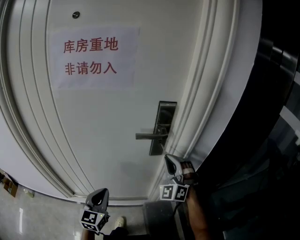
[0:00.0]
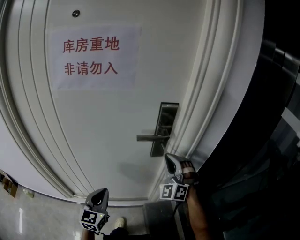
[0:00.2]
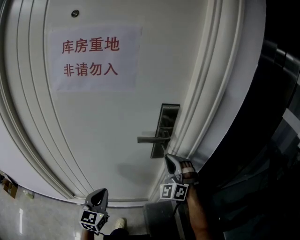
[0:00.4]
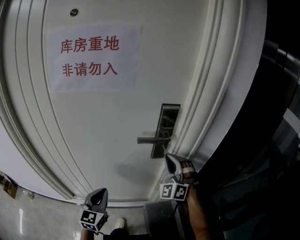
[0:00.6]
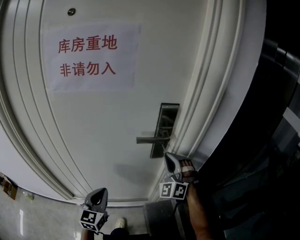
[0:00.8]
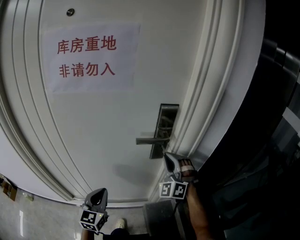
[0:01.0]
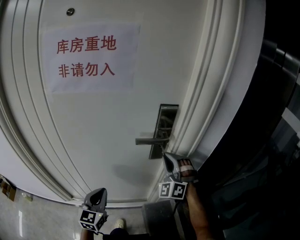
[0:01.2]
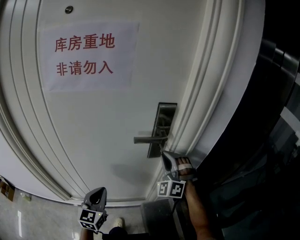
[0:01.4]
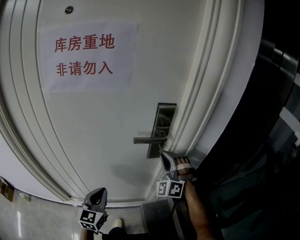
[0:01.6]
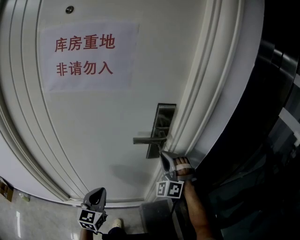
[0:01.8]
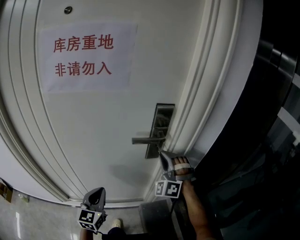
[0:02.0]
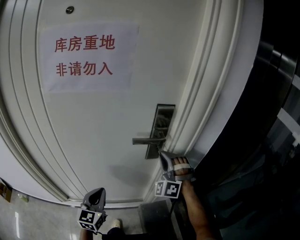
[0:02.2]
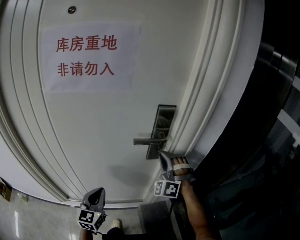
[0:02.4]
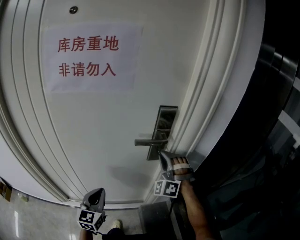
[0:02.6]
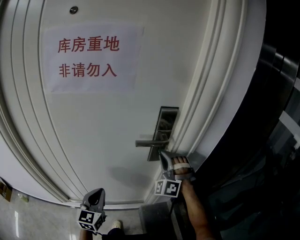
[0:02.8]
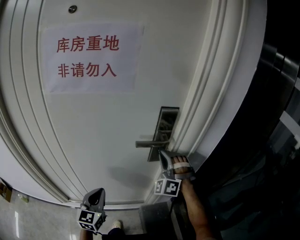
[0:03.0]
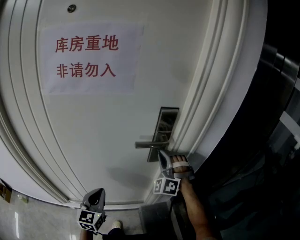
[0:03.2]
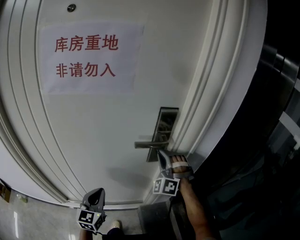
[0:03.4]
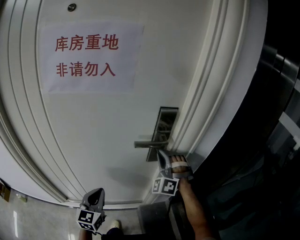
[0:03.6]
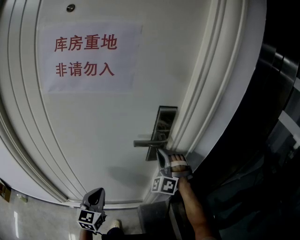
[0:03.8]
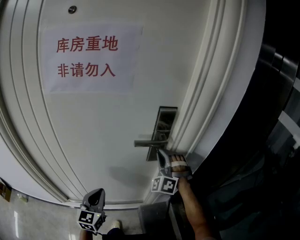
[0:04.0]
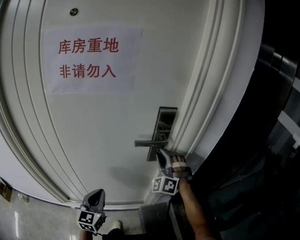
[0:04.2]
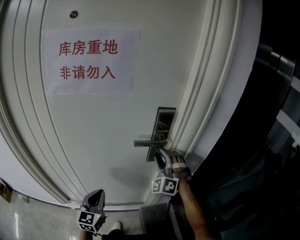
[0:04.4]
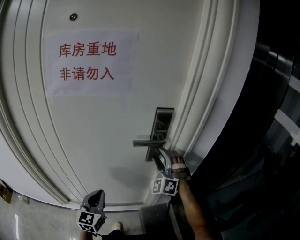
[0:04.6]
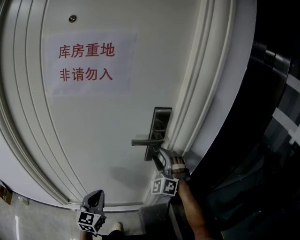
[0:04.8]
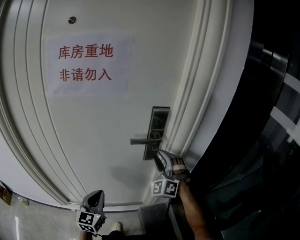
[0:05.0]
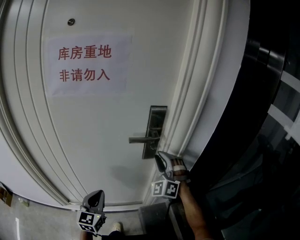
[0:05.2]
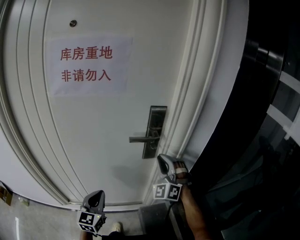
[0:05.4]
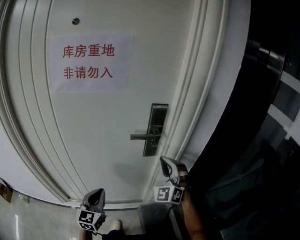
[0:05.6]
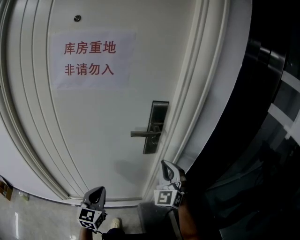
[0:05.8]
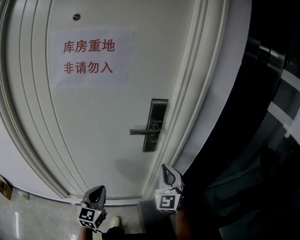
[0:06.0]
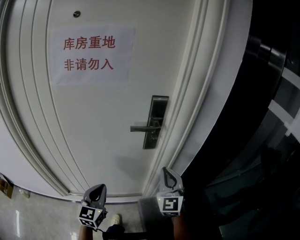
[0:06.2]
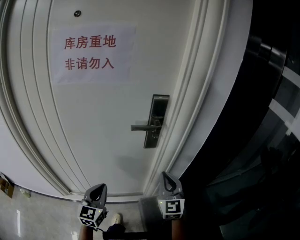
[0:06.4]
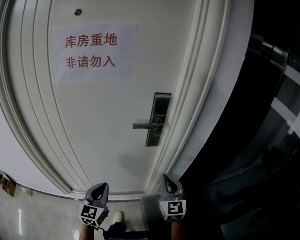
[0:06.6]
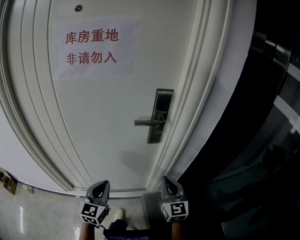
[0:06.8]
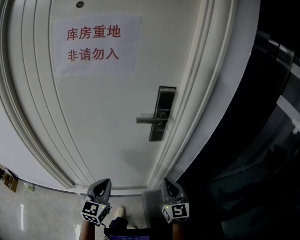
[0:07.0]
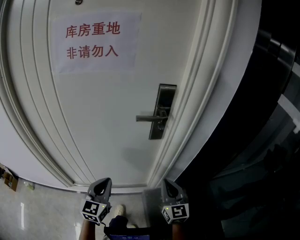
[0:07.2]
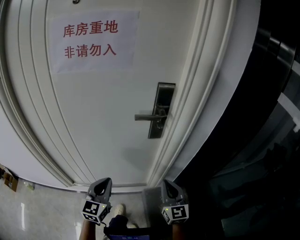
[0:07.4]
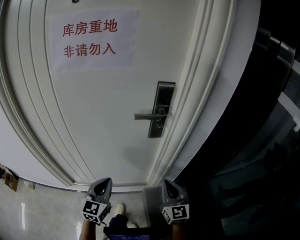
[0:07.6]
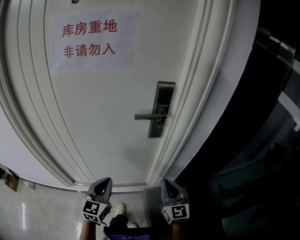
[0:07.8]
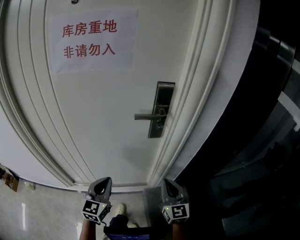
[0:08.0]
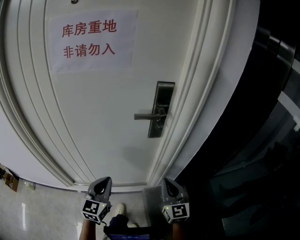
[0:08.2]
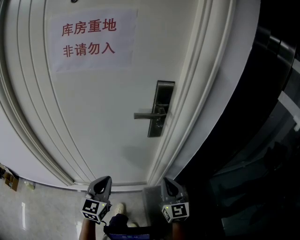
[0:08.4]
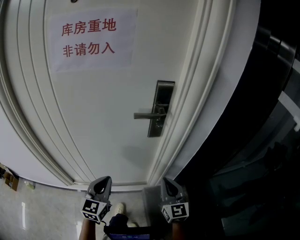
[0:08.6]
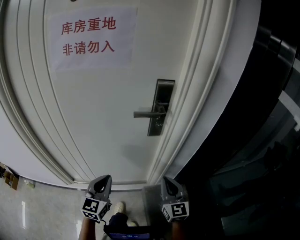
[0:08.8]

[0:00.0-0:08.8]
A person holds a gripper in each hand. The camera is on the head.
0:00.0 to 0:01.4: The grippers make only small movements.
0:01.4 to 0:03.0: There are only small adjustments of the grippers.
0:03.0 to 0:04.4: The right gripper opens.
0:04.4 to 0:05.8: The right gripper is displaced backward by approximately 10 cm, rotates about 30 degrees, and closes its fingers.
0:05.8 to 0:07.4: The right gripper travels downward and backward by approximately 15 cm, and rotates around the line of its fingers by some 40 degrees, clockwise from behind.
0:07.4 to 0:08.8: The two grippers keep their place.

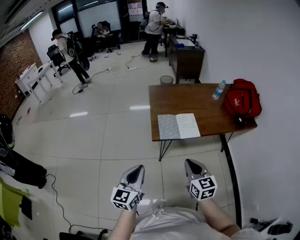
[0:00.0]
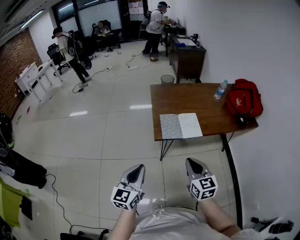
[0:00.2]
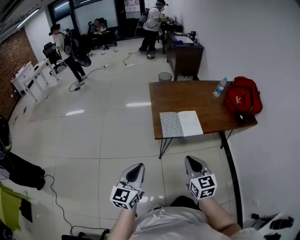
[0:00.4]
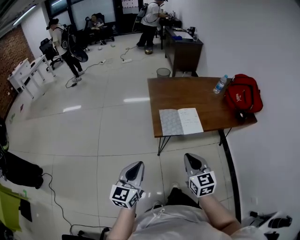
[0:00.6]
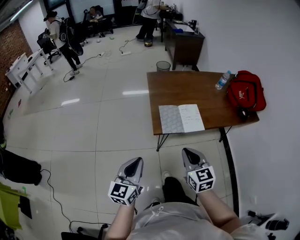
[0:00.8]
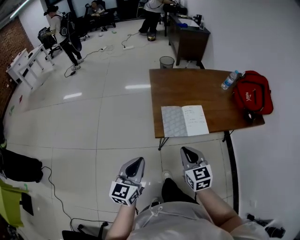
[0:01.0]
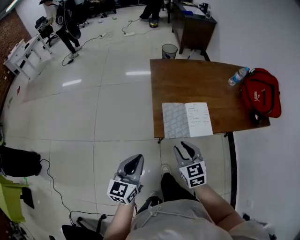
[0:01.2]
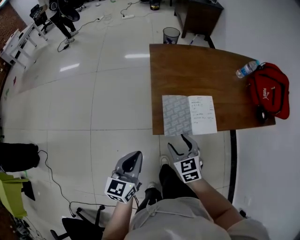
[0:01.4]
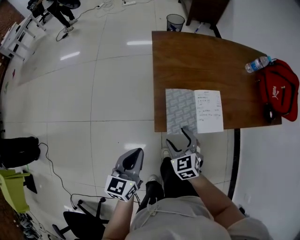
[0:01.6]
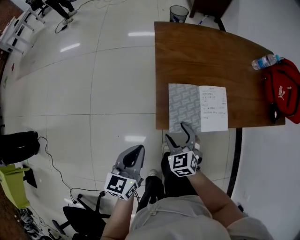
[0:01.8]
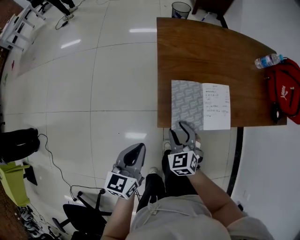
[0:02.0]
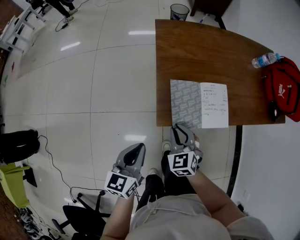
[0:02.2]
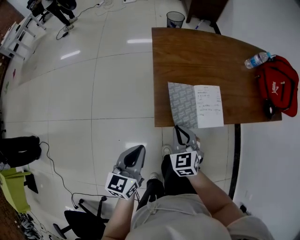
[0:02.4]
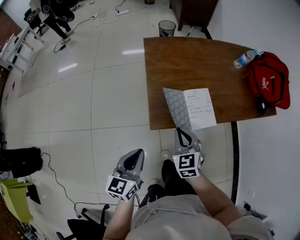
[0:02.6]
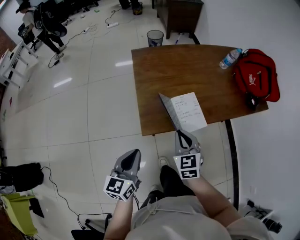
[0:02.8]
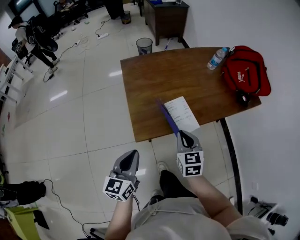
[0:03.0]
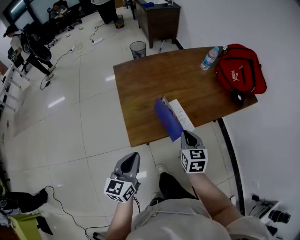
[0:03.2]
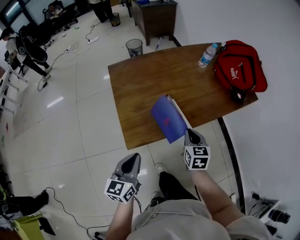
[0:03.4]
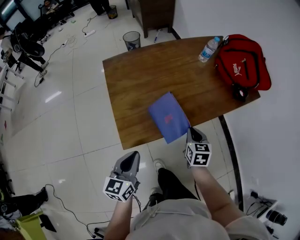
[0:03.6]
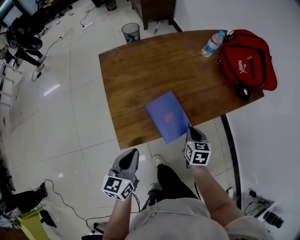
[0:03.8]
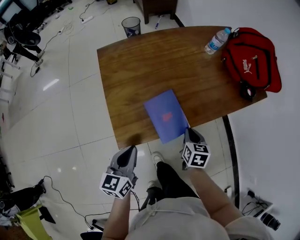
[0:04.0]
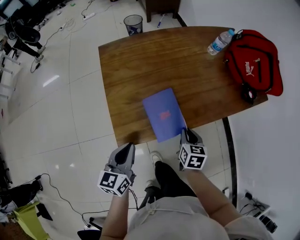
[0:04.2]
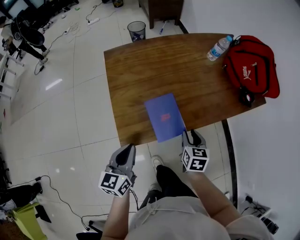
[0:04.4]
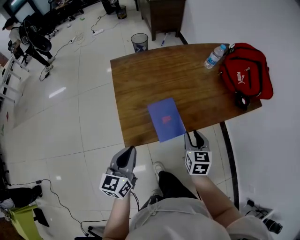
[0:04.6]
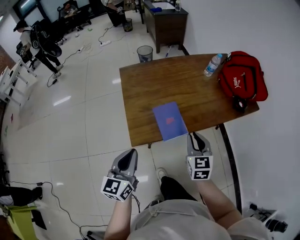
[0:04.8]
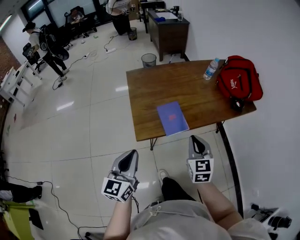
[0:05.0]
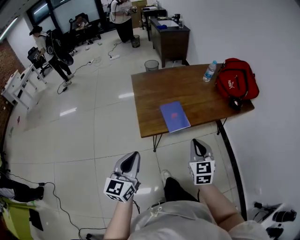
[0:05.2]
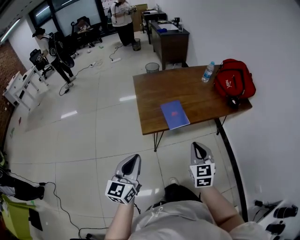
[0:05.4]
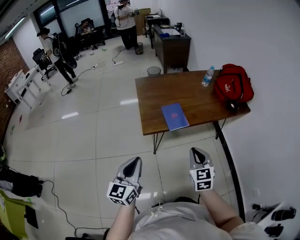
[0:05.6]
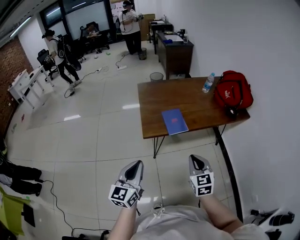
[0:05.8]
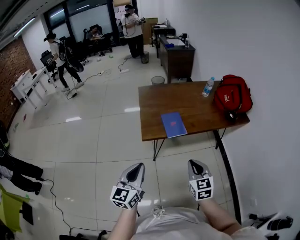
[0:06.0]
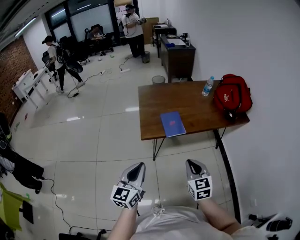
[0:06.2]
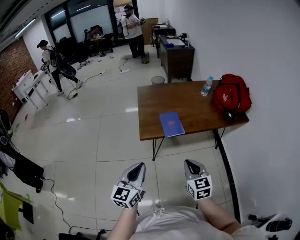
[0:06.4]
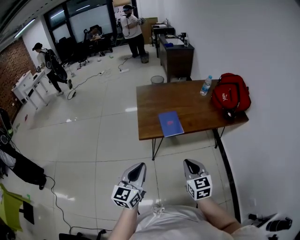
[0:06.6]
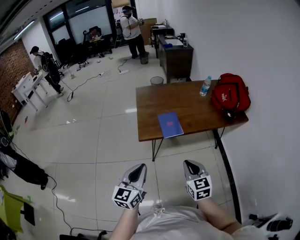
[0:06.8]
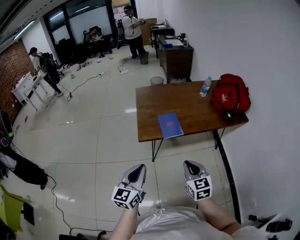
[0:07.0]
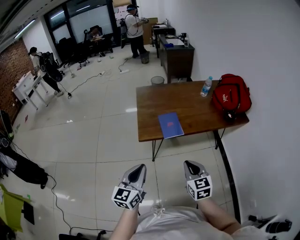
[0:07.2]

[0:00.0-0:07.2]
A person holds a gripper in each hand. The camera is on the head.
0:00.0 to 0:01.4: The left gripper goes about 20 cm forward and downward. The right gripper heads forward, downward and to the left, covering roughly 25 cm, rotates approximately 30 degrees, and opens.
0:01.4 to 0:02.8: The right gripper goes some 10 cm upward and to the right, and closes.
0:02.8 to 0:04.4: The right gripper heads to the right, downward and forward, covering some 20 cm, changes its angle by approximately 30 degrees, and opens. Meanwhile the left gripper heads forward and to the right, covering approximately 15 cm.
0:04.4 to 0:05.8: Both grippers travel together backward and upward, approximately 30 cm. The right gripper rotates about 30 degrees, and closes its fingers.
0:05.8 to 0:07.2: The left gripper moves to the right, some 5 cm.

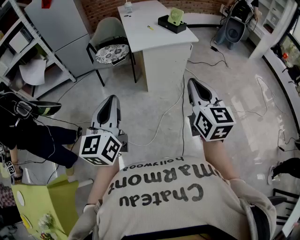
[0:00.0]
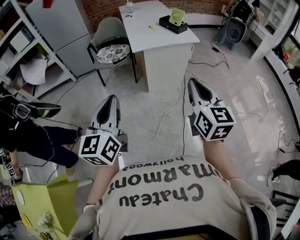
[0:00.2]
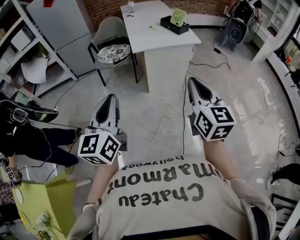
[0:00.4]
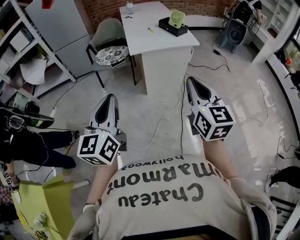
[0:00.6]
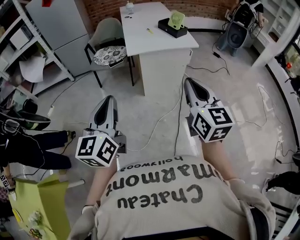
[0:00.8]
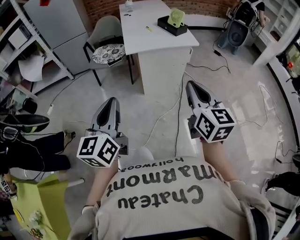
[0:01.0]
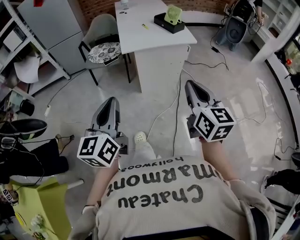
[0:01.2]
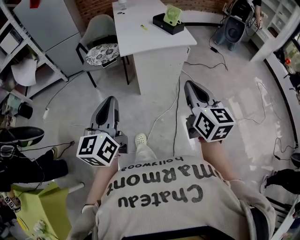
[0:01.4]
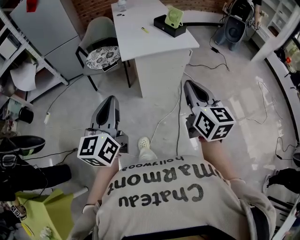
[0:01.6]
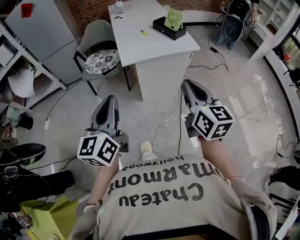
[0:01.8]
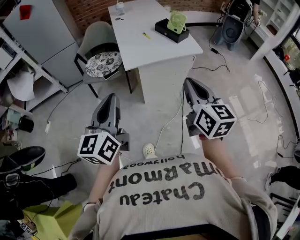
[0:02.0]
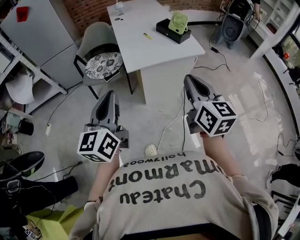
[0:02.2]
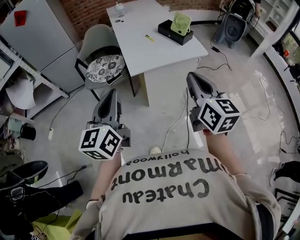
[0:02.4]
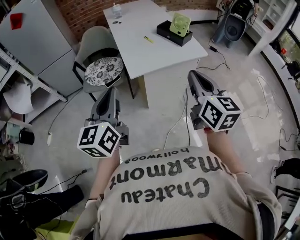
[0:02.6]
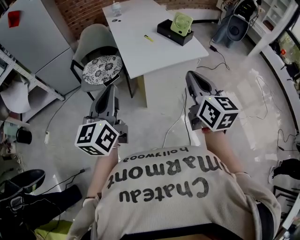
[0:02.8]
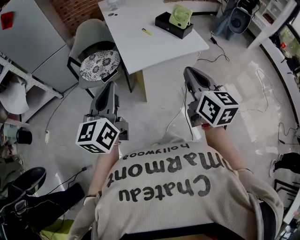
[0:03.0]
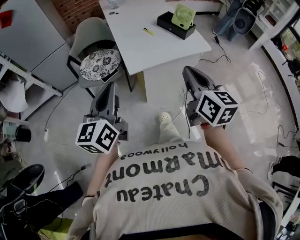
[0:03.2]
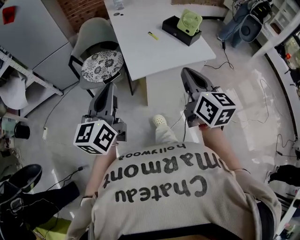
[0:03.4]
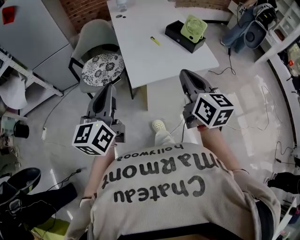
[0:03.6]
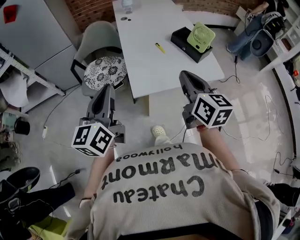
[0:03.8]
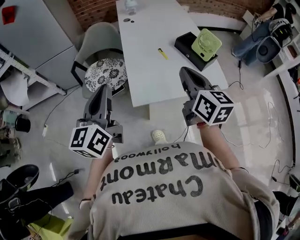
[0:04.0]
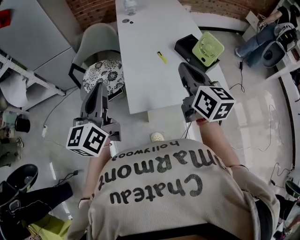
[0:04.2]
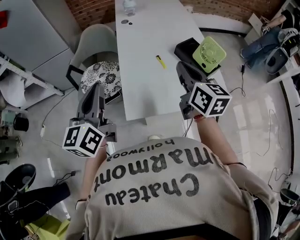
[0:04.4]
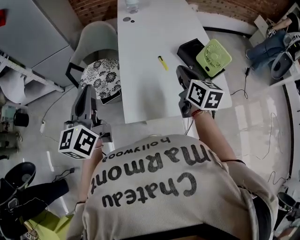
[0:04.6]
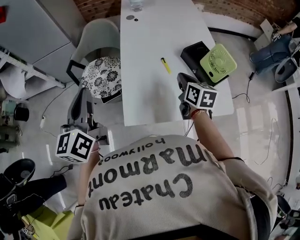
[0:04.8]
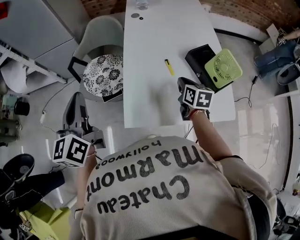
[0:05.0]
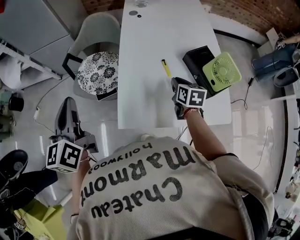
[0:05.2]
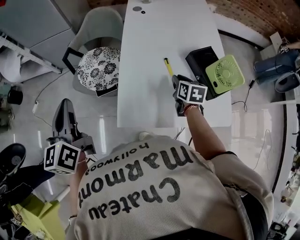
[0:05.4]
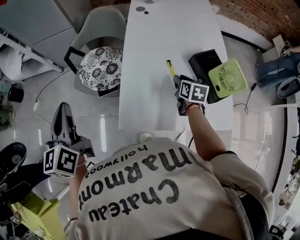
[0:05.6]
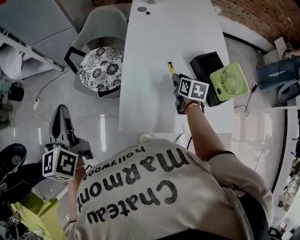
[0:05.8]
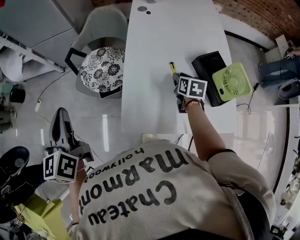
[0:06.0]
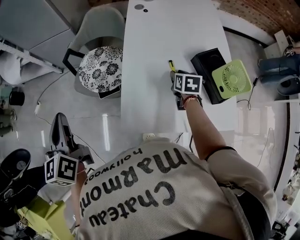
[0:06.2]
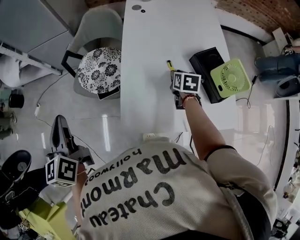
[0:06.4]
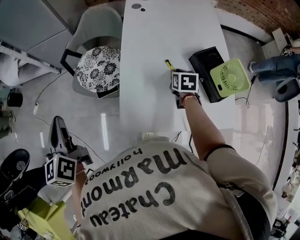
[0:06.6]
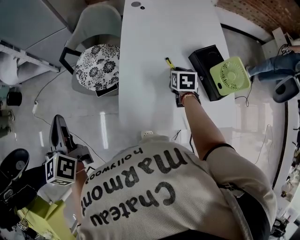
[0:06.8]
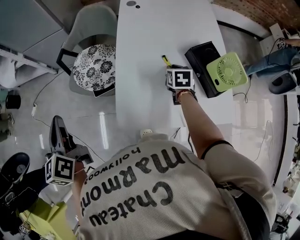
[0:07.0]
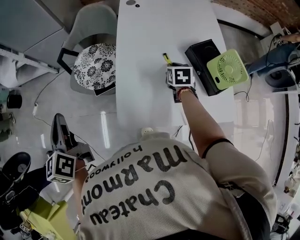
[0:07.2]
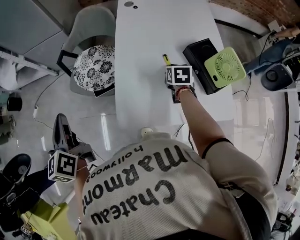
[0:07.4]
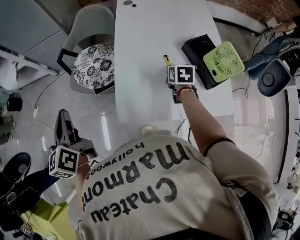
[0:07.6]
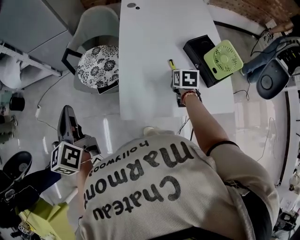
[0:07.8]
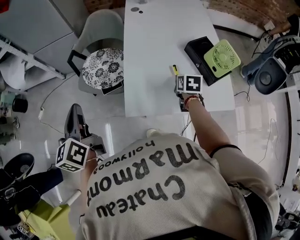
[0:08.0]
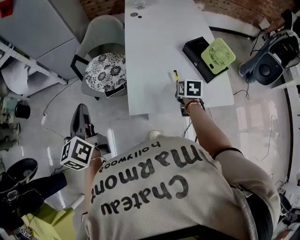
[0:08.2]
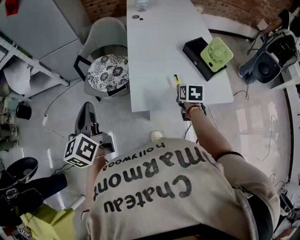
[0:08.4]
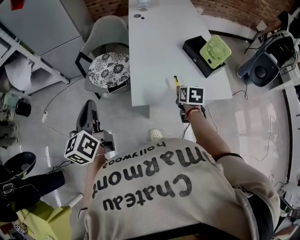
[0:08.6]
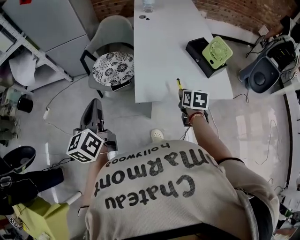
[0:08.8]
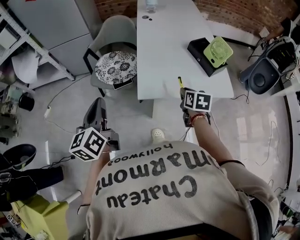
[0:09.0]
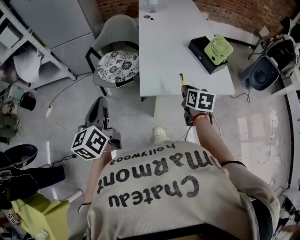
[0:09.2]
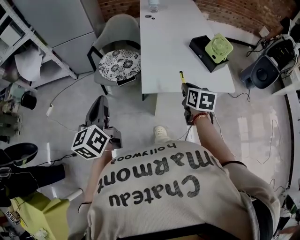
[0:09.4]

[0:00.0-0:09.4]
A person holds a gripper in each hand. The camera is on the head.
0:00.0 to 0:01.6: The grippers both shift forward by some 15 cm.
0:01.6 to 0:03.2: The left gripper moves forward, approximately 25 cm, while the right gripper goes about 25 cm forward and to the left.
0:03.2 to 0:04.8: The left gripper travels forward by roughly 30 cm, and changes its angle by approximately 20 degrees; the right gripper is displaced forward and downward by some 50 cm, and turns by approximately 20 degrees.
0:04.8 to 0:06.2: The right gripper is displaced downward and forward by some 15 cm, rotates approximately 20 degrees, and opens; the left gripper is displaced to the left by about 10 cm, and swivels some 20 degrees.
0:06.2 to 0:07.8: The right gripper moves backward, about 5 cm.
0:07.8 to 0:09.4: The right gripper moves backward, upward and to the left, roughly 30 cm. The left gripper travels backward by about 15 cm.
